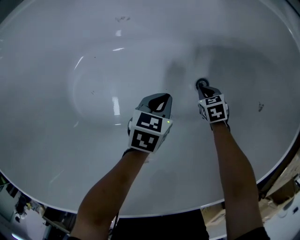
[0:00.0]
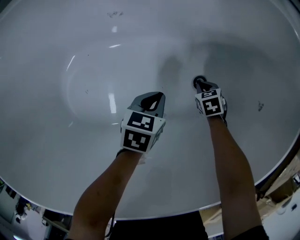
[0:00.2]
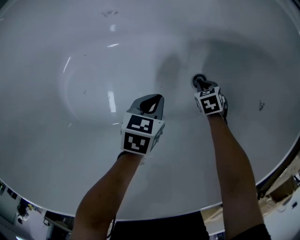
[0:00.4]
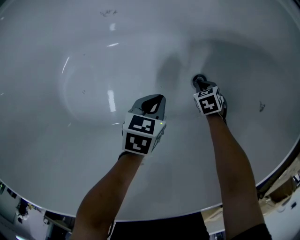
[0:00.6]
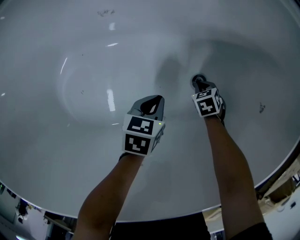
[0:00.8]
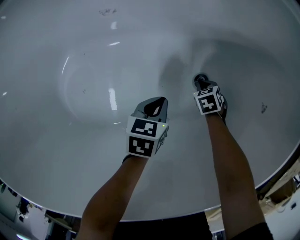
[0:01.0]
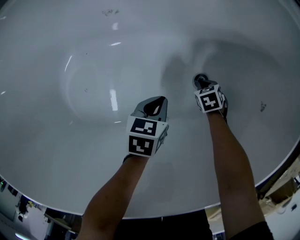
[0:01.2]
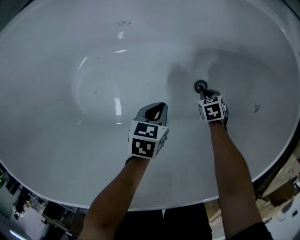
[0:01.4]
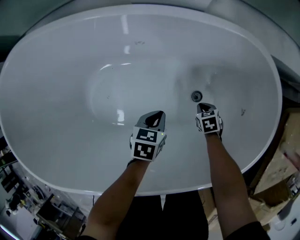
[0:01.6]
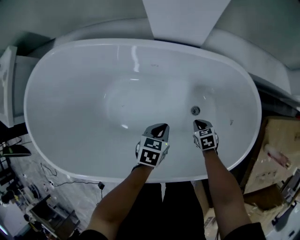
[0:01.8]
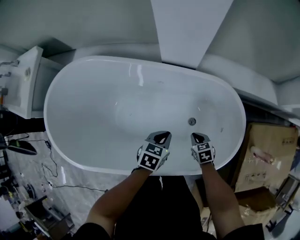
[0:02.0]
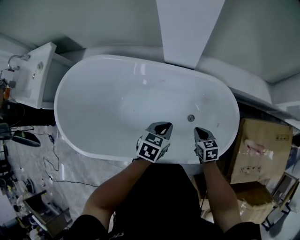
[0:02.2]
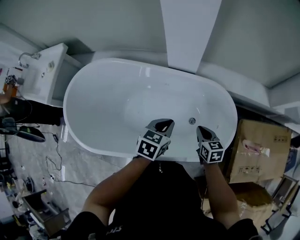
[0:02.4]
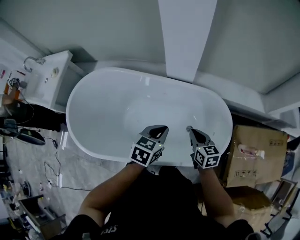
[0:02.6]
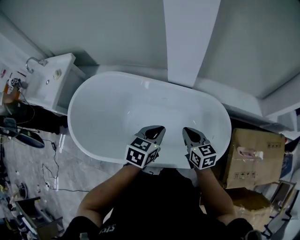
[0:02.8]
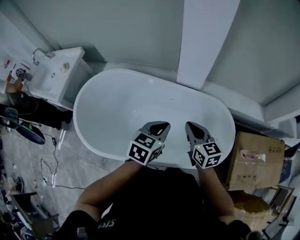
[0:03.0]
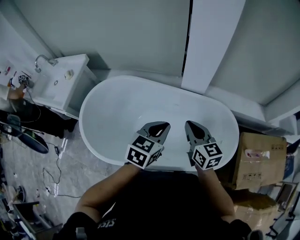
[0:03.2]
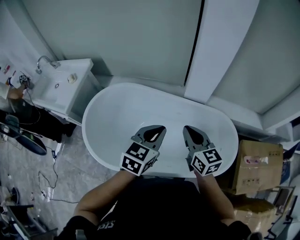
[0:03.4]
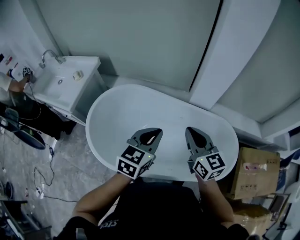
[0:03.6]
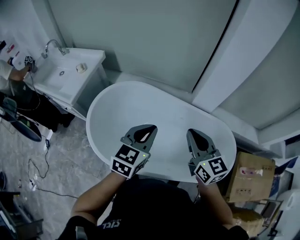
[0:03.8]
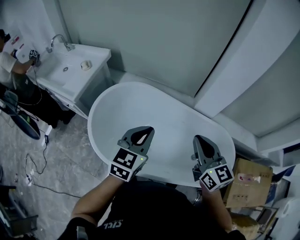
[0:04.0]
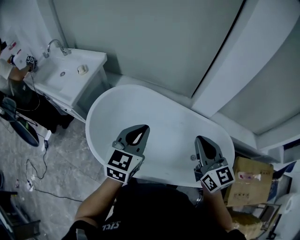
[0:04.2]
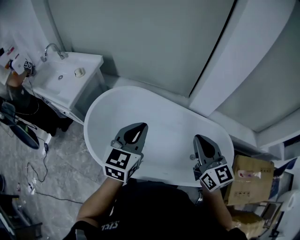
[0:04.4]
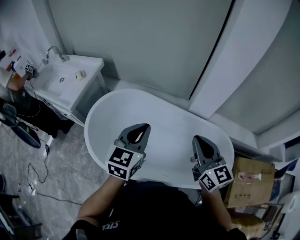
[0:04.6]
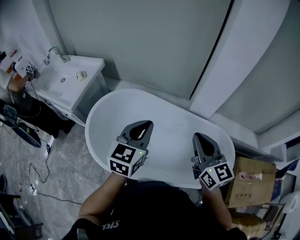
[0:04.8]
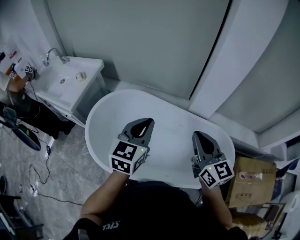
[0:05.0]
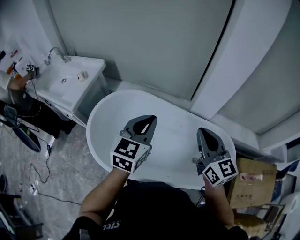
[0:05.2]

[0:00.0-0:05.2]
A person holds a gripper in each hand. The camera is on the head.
0:00.0 to 0:01.8: The two grippers go approximately 25 cm upward.
0:01.8 to 0:03.4: The left gripper heads upward, covering roughly 50 cm, and tips its fingers upward by approximately 30 degrees; the right gripper travels upward and to the left by approximately 70 cm, and tips its fingers upward by about 50 degrees.
0:03.4 to 0:05.2: The right gripper is displaced upward by some 10 cm, while the left gripper goes some 15 cm to the left, upward and forward.

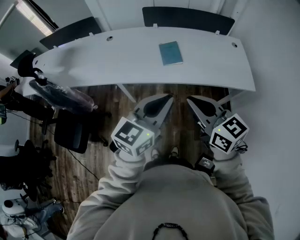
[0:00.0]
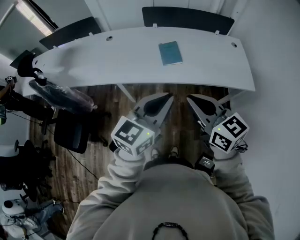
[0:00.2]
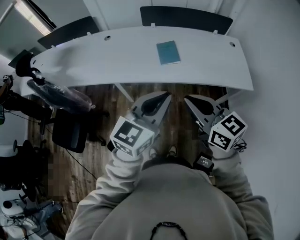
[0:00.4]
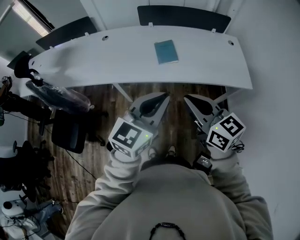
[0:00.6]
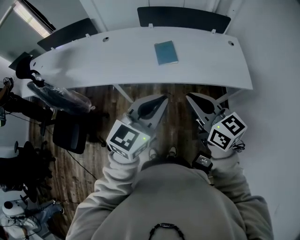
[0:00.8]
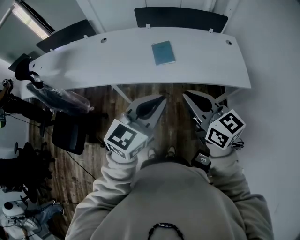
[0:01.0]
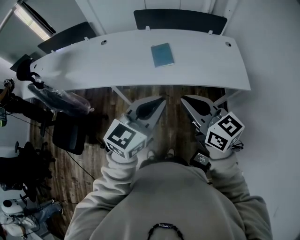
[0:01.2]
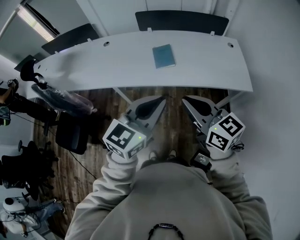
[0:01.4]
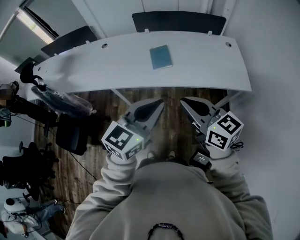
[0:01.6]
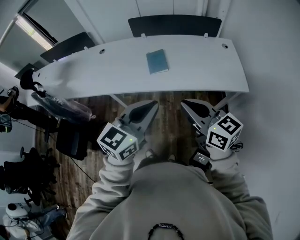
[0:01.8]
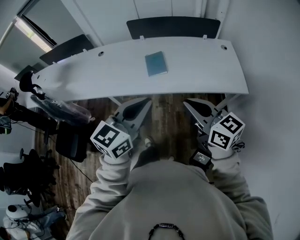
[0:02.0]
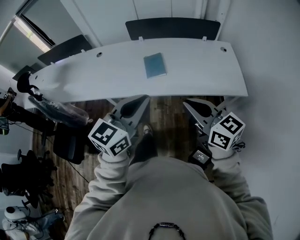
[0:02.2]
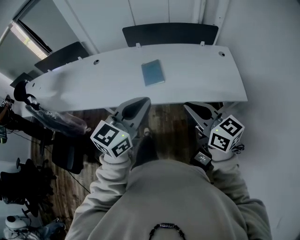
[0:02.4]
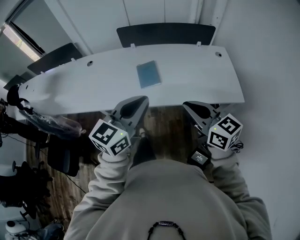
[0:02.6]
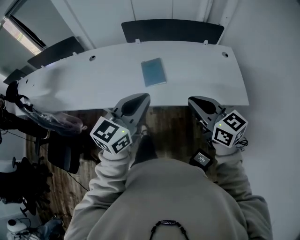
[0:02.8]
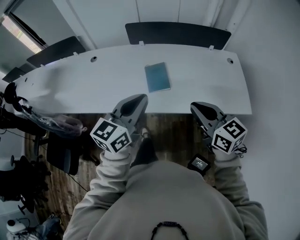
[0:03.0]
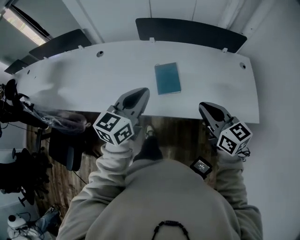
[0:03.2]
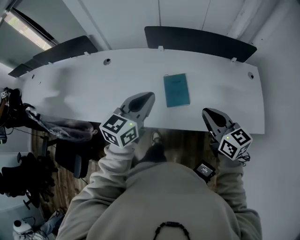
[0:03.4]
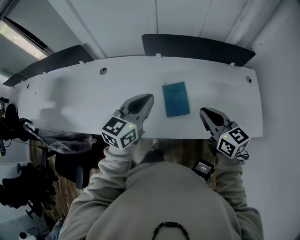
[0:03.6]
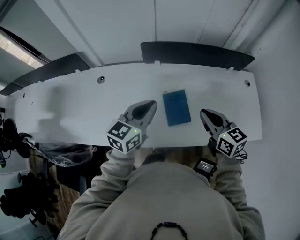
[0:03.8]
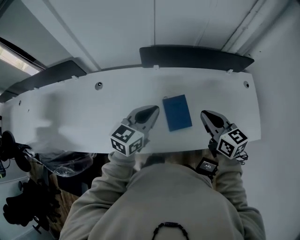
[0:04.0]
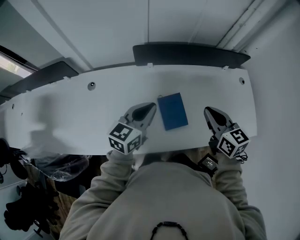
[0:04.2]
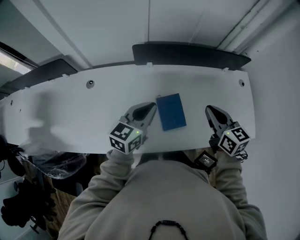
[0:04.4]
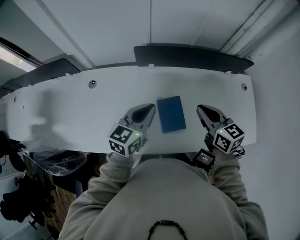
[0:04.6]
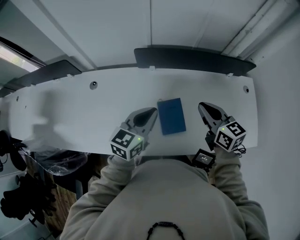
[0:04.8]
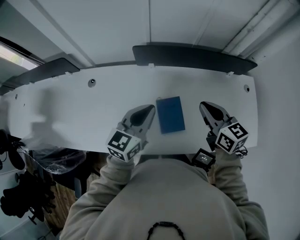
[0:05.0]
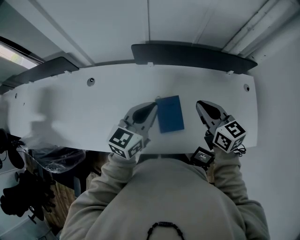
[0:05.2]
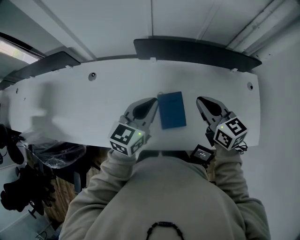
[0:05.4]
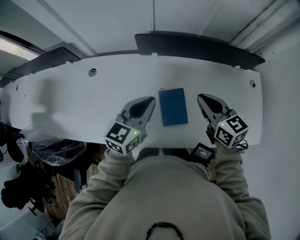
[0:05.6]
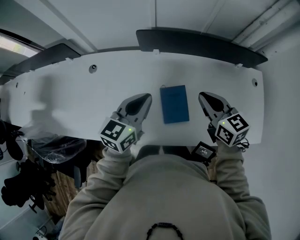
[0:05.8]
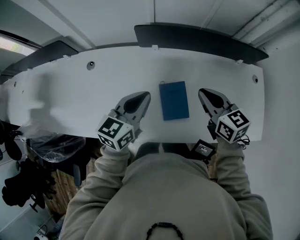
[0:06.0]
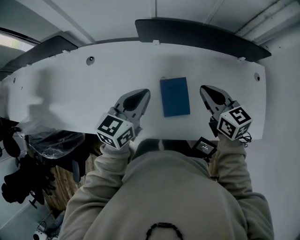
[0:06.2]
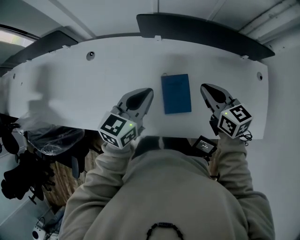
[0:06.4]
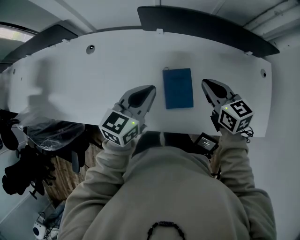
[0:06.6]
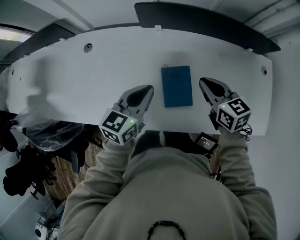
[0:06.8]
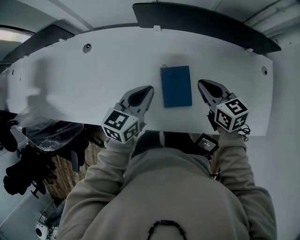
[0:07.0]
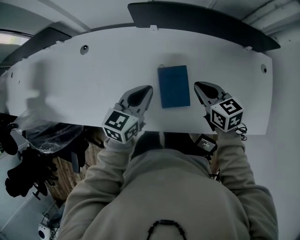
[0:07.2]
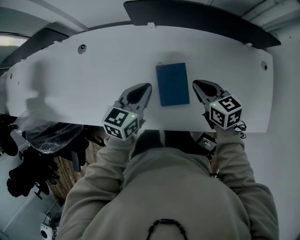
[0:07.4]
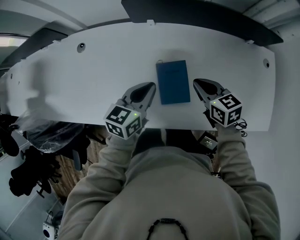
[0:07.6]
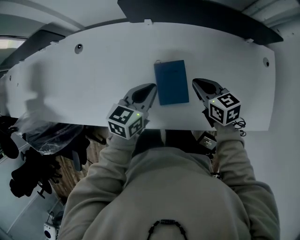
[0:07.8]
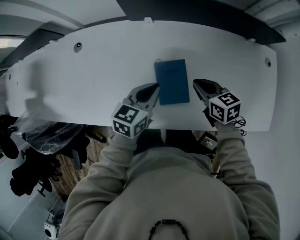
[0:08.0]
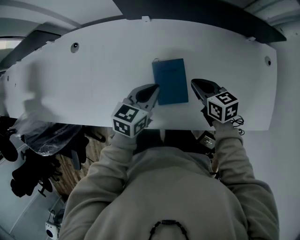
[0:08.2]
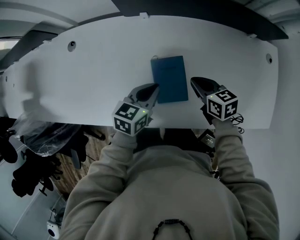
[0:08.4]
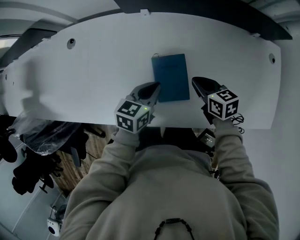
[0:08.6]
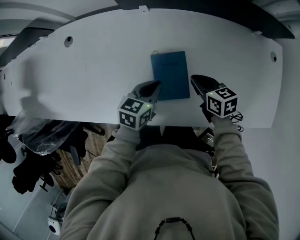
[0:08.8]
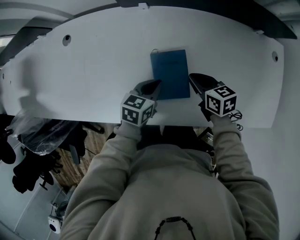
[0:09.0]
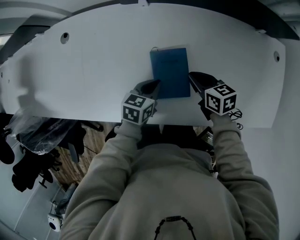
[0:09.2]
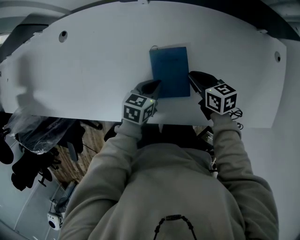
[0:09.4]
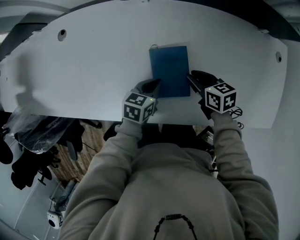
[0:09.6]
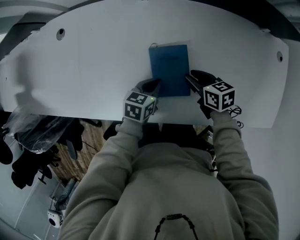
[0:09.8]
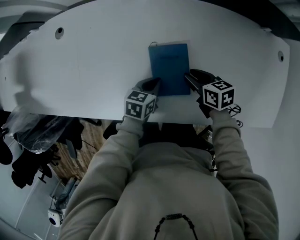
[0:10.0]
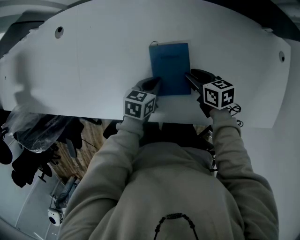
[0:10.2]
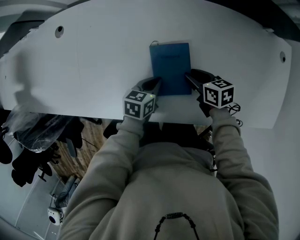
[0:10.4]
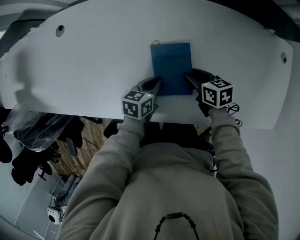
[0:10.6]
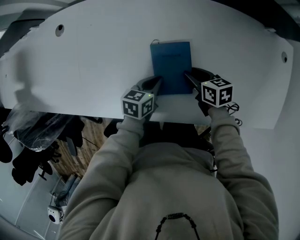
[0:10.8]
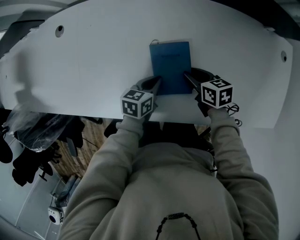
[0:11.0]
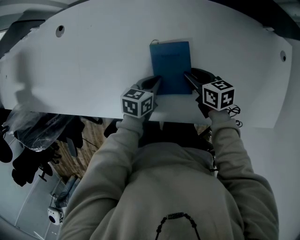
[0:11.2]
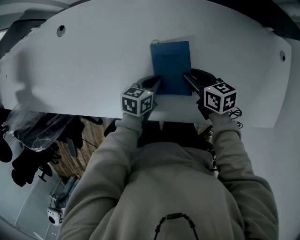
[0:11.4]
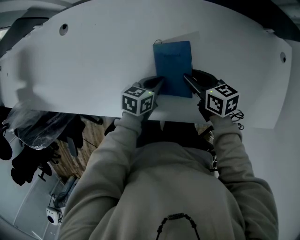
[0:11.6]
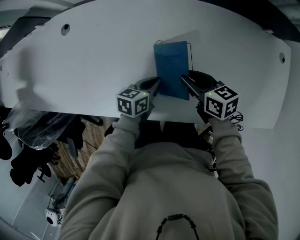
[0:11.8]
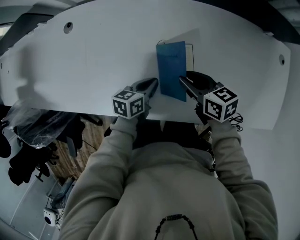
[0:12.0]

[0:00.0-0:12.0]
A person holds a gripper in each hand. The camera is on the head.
0:00.0 to 0:01.6: Both grippers move to the right, about 10 cm.
0:01.6 to 0:03.0: Both grippers travel together forward, some 20 cm.
0:03.0 to 0:04.4: Both grippers move forward, about 30 cm.
0:04.4 to 0:06.0: The right gripper changes place by some 5 cm.
0:06.0 to 0:07.6: Both grippers move downward, approximately 10 cm.
0:07.6 to 0:09.0: Both grippers travel together downward, roughly 15 cm.
0:09.0 to 0:10.4: The grippers both shift downward by approximately 5 cm. The right gripper opens up.
0:10.4 to 0:12.0: The right gripper is displaced upward and to the left by approximately 10 cm. The left gripper shifts by approximately 5 cm.

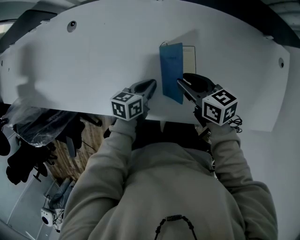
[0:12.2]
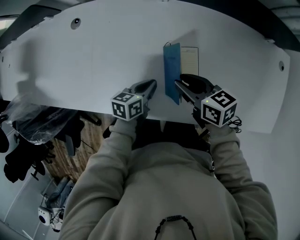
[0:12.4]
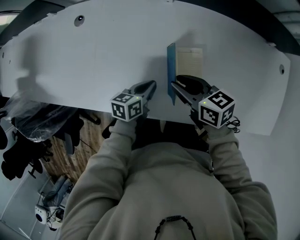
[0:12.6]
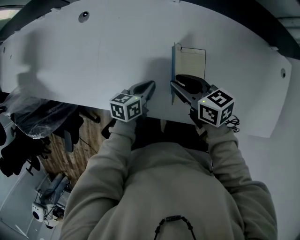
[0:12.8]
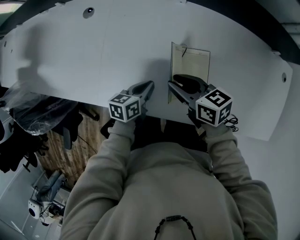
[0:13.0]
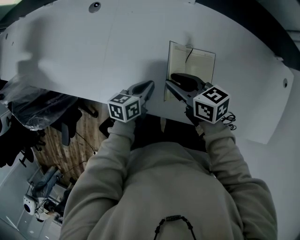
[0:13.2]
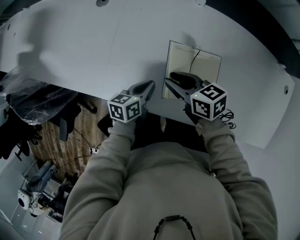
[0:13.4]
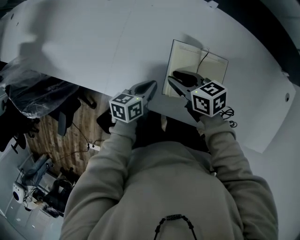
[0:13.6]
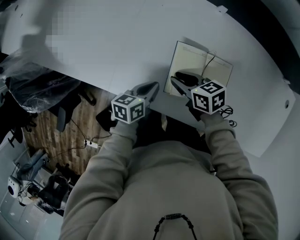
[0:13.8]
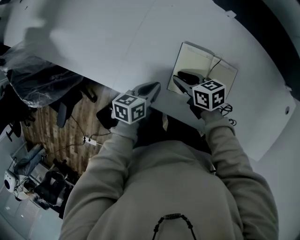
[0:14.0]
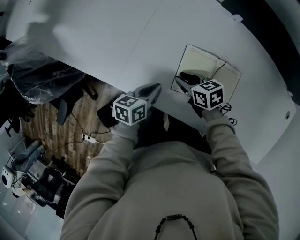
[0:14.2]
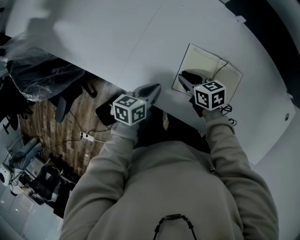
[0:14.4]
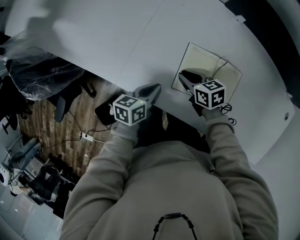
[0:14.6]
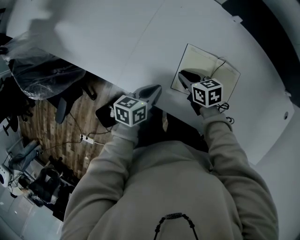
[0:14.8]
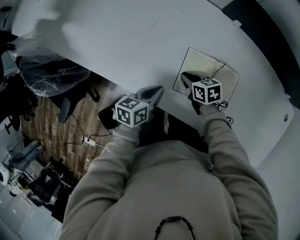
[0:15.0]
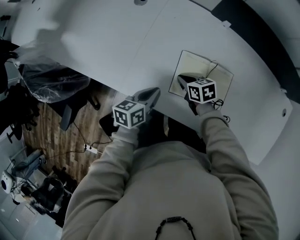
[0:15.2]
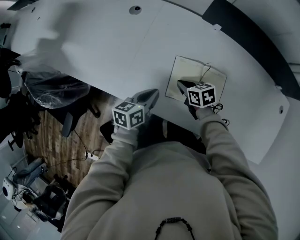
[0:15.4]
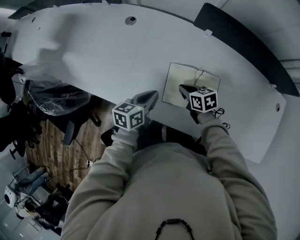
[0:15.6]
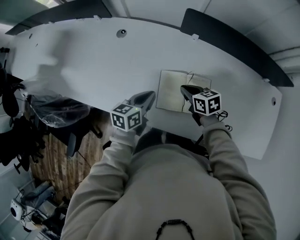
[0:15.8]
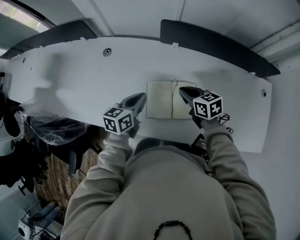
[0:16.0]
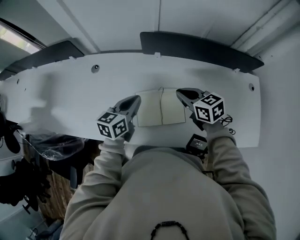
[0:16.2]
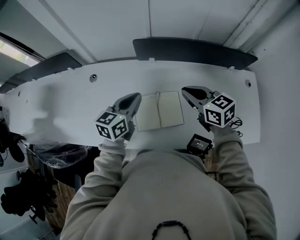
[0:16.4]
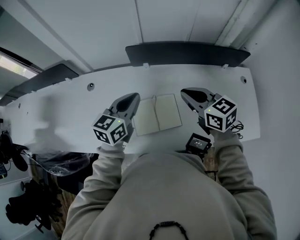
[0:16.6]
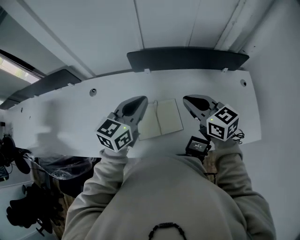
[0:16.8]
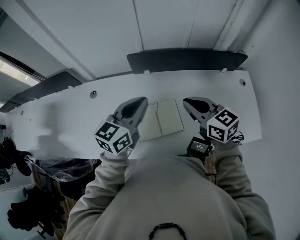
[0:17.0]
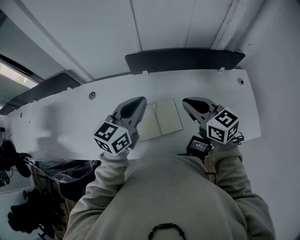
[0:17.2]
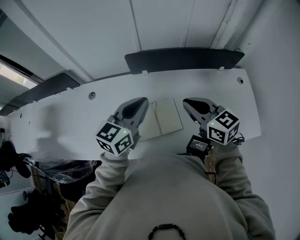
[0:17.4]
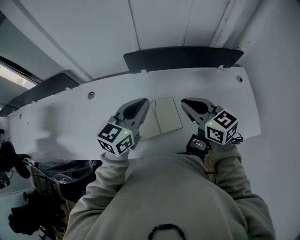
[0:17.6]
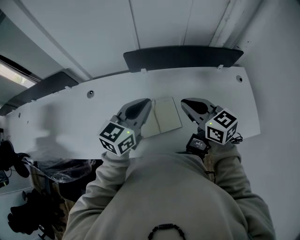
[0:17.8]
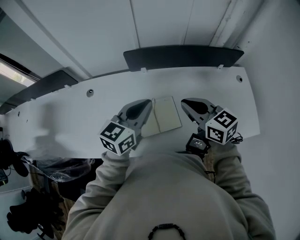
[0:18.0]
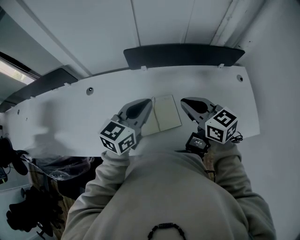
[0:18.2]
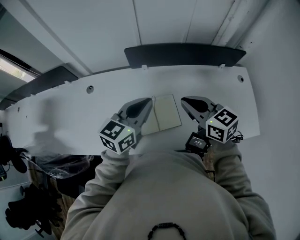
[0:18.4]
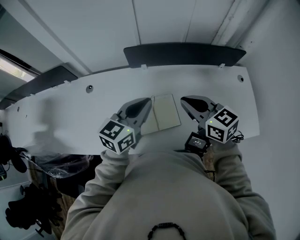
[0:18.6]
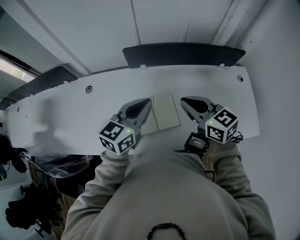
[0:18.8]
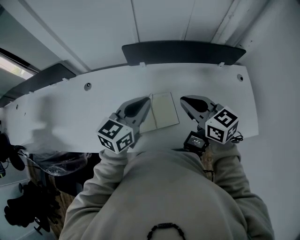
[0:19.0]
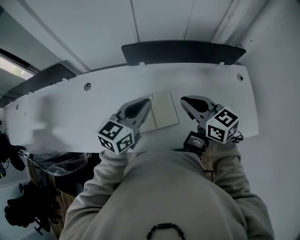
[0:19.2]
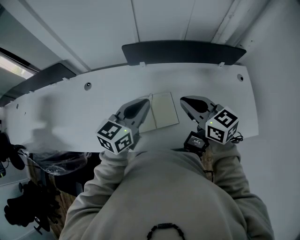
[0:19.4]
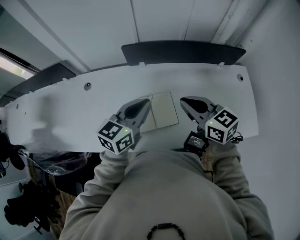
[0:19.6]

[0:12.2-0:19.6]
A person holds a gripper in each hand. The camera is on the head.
0:12.2 to 0:13.6: The two grippers go about 15 cm to the left.
0:13.6 to 0:15.2: The right gripper travels downward by roughly 5 cm, and closes. The left gripper moves upward and to the left, about 5 cm.
0:15.2 to 0:16.6: The two grippers go approximately 30 cm upward. The right gripper swivels some 40 degrees. The left gripper turns by about 40 degrees.
0:16.6 to 0:18.2: The left gripper moves about 5 cm. The right gripper goes about 5 cm backward.
0:18.2 to 0:19.6: There are only small adjustments of the grippers.
